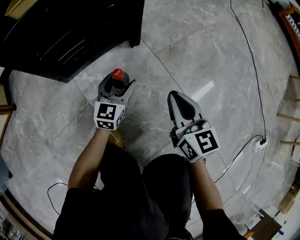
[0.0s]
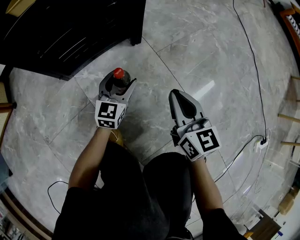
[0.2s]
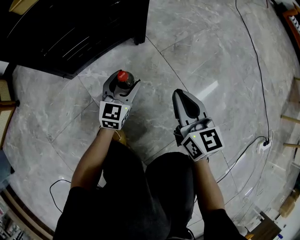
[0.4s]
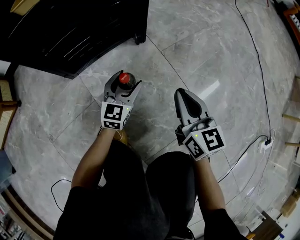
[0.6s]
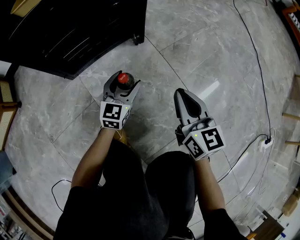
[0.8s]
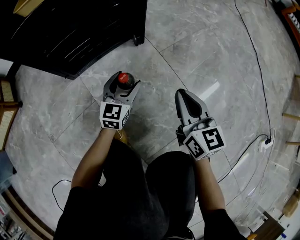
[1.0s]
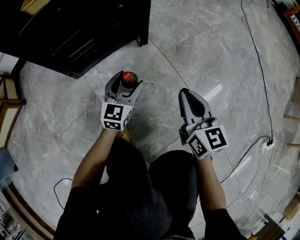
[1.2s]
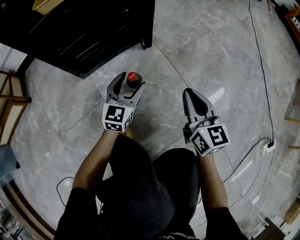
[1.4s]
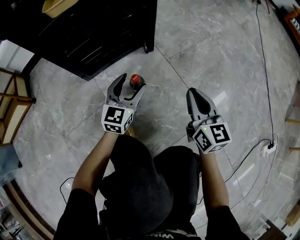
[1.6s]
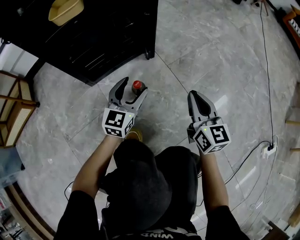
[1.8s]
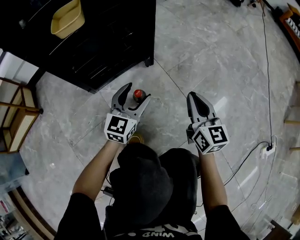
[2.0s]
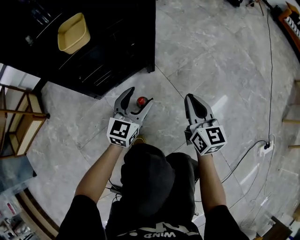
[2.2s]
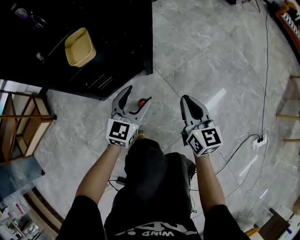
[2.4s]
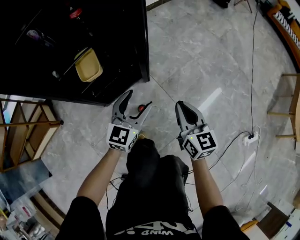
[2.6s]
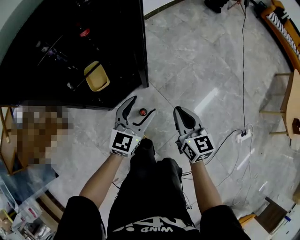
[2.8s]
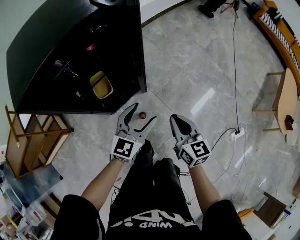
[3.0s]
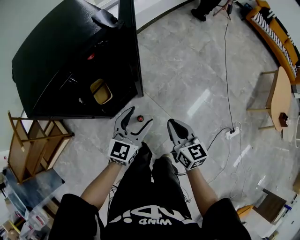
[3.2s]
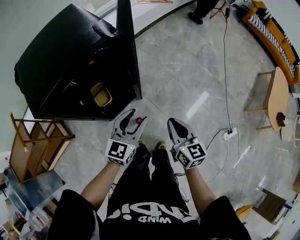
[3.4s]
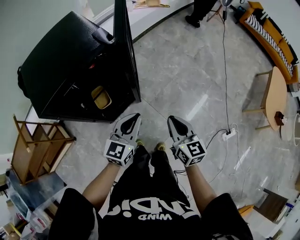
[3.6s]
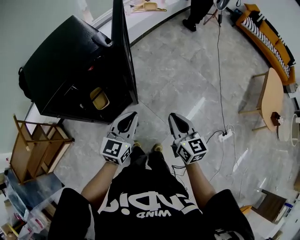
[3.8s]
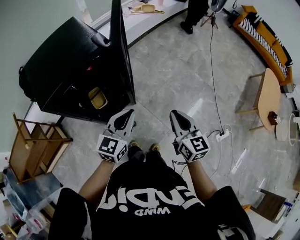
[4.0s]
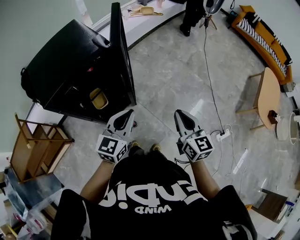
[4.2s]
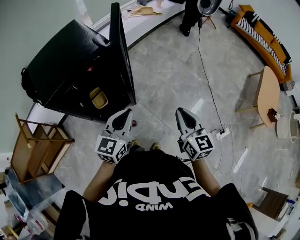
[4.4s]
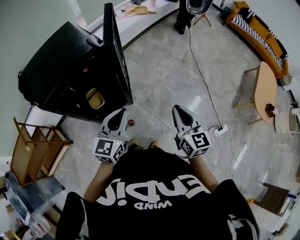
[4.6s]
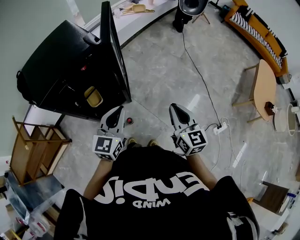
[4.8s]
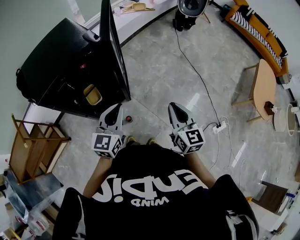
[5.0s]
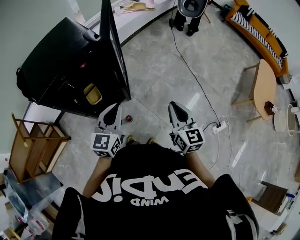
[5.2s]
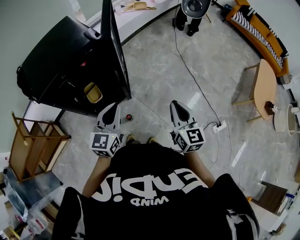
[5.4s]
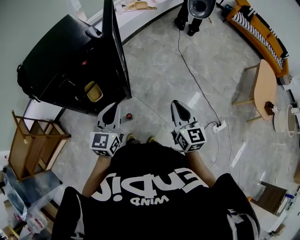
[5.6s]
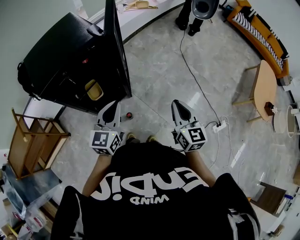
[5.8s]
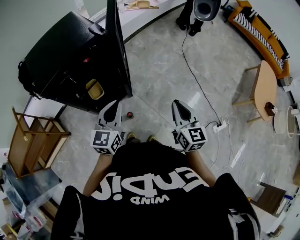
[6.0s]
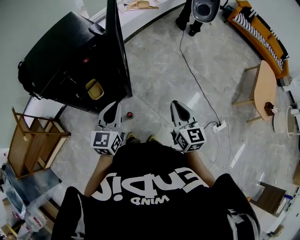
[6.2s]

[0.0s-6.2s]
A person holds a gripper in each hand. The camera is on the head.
0.0s to 1.6s: The left gripper goes roughly 10 cm upward.
1.6s to 3.2s: The two grippers go approximately 60 cm upward.
3.2s to 4.6s: The left gripper shifts about 15 cm upward, and closes, while the right gripper shifts approximately 20 cm upward and to the right.
4.6s to 6.2s: There are only small adjustments of the grippers.
